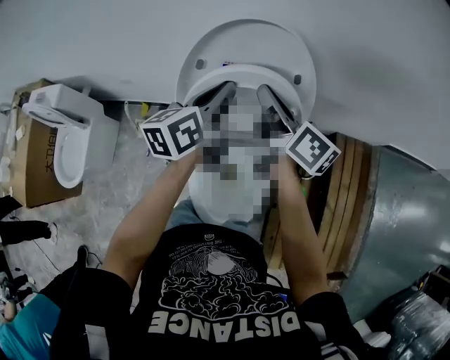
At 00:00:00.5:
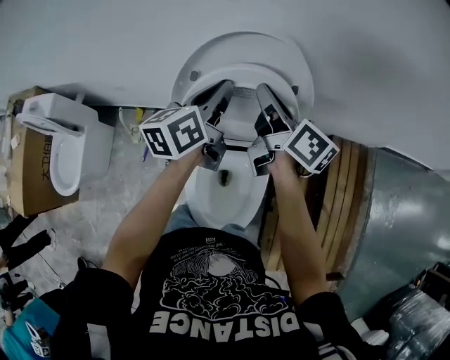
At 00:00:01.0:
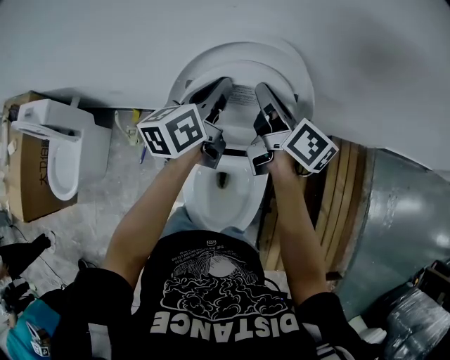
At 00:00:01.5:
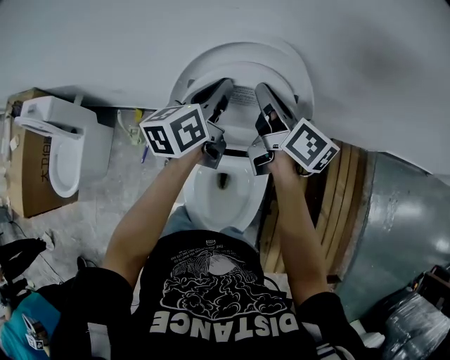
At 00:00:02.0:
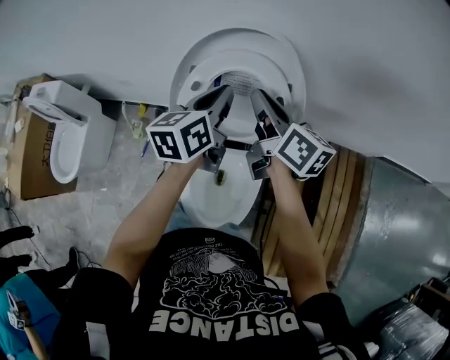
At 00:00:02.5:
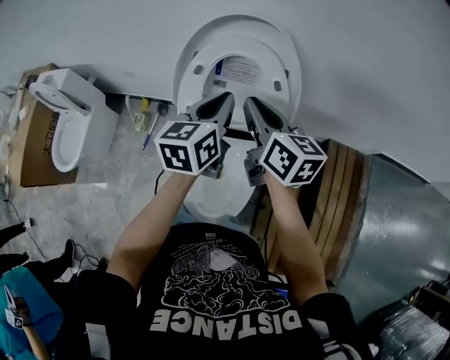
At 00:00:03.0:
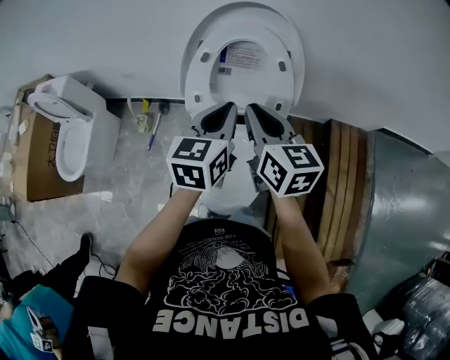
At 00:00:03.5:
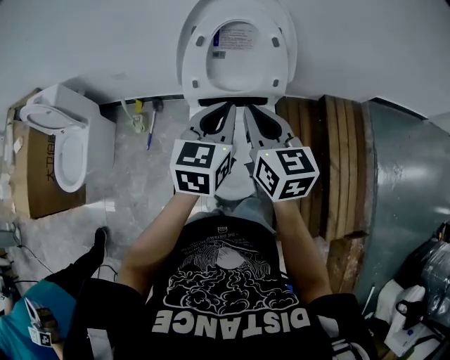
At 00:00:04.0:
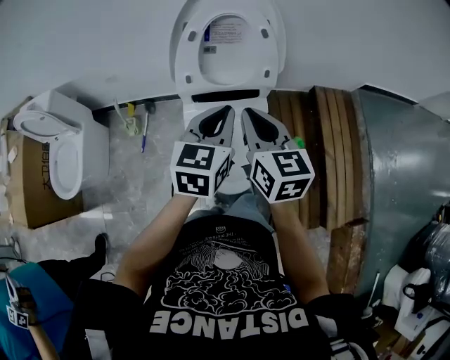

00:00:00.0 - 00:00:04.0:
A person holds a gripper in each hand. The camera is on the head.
00:00:00.0 - 00:00:02.0: The left gripper reaches about 10 cm forward, then returns; the right gripper moves approximately 10 cm forward and comes back.
00:00:02.0 - 00:00:04.0: The two grippers go some 25 cm backward. The left gripper turns by about 30 degrees. Meanwhile the right gripper turns by some 40 degrees.

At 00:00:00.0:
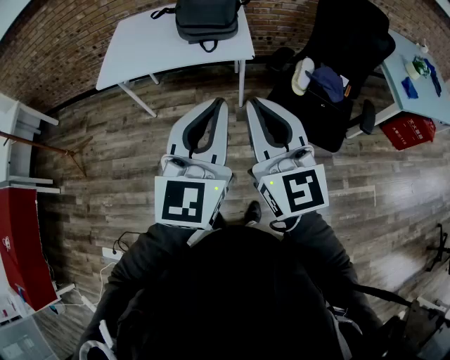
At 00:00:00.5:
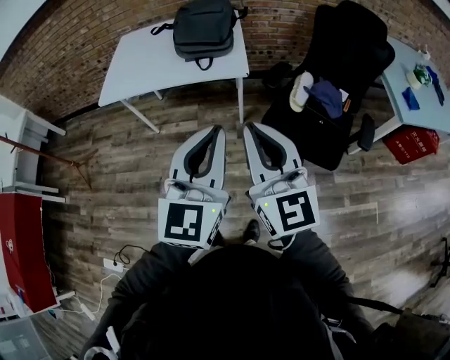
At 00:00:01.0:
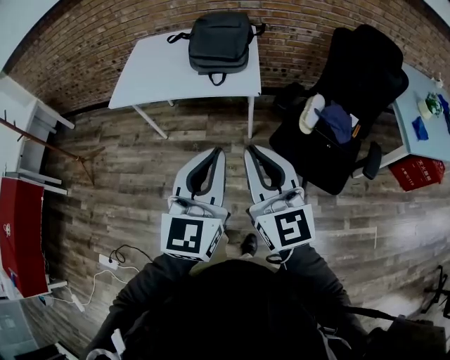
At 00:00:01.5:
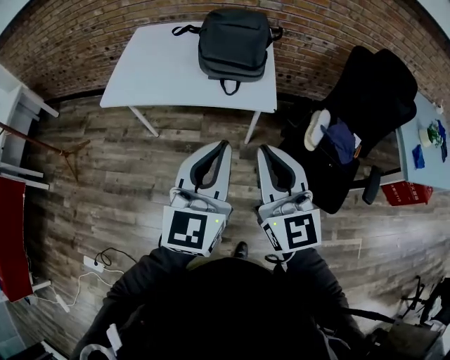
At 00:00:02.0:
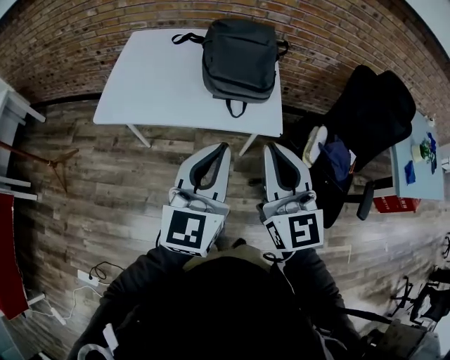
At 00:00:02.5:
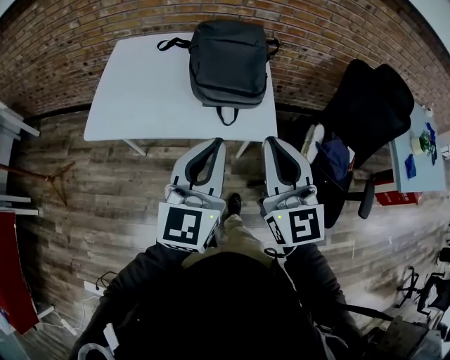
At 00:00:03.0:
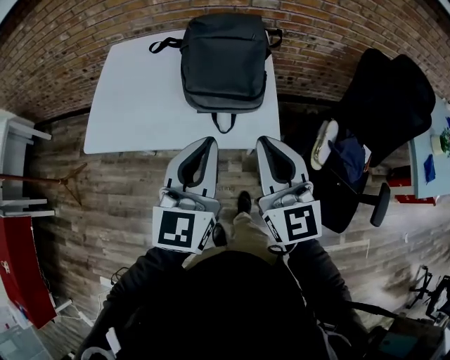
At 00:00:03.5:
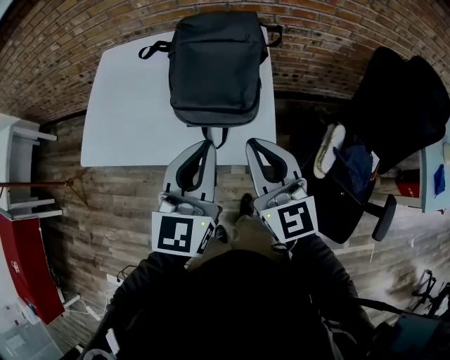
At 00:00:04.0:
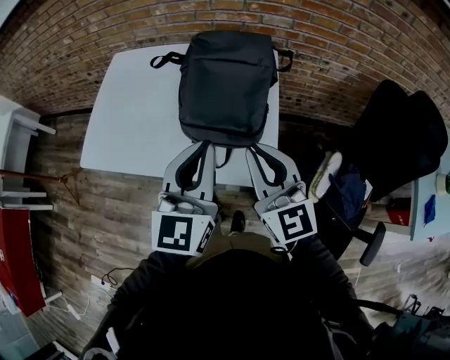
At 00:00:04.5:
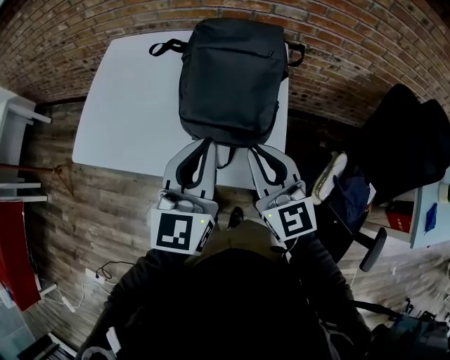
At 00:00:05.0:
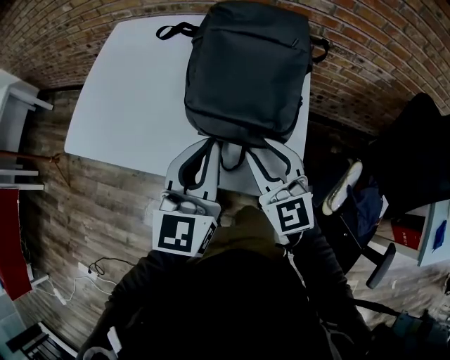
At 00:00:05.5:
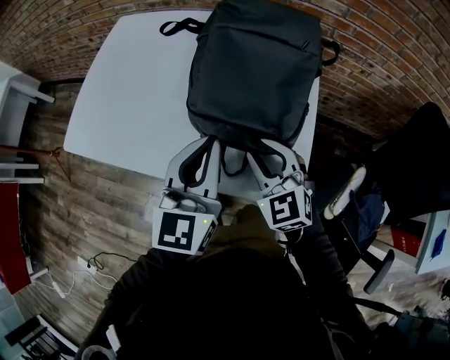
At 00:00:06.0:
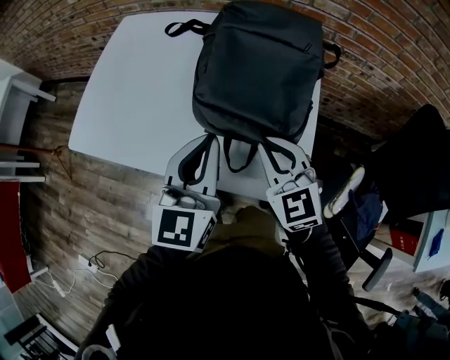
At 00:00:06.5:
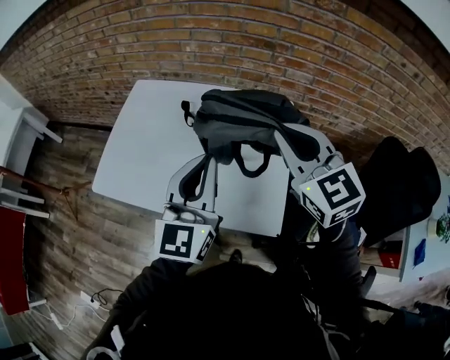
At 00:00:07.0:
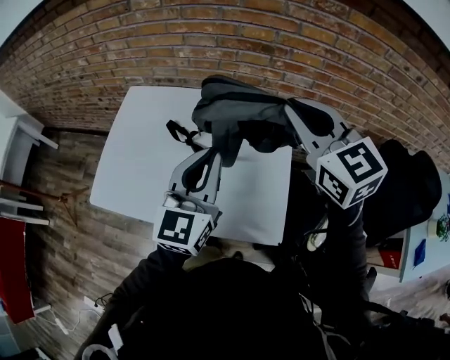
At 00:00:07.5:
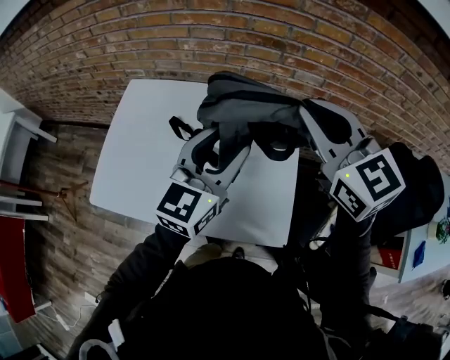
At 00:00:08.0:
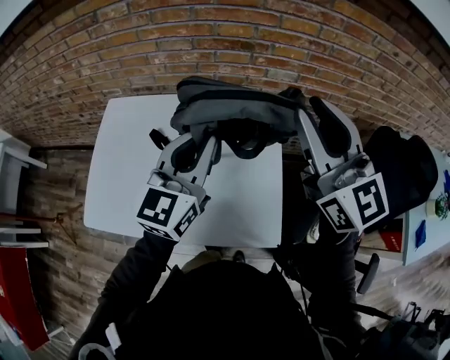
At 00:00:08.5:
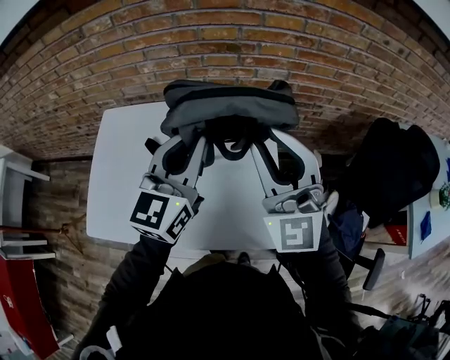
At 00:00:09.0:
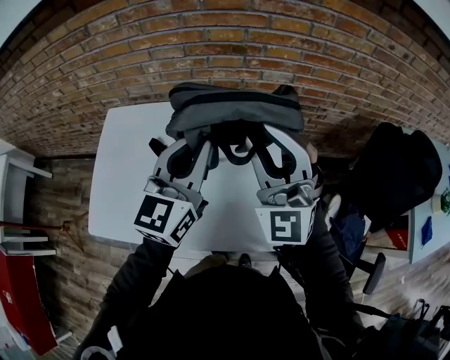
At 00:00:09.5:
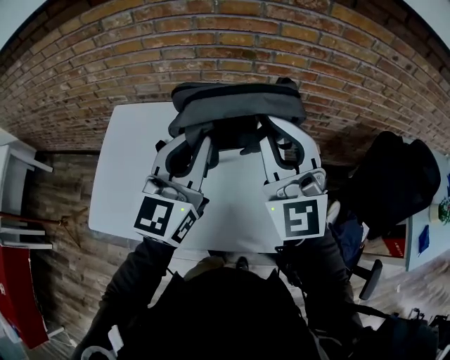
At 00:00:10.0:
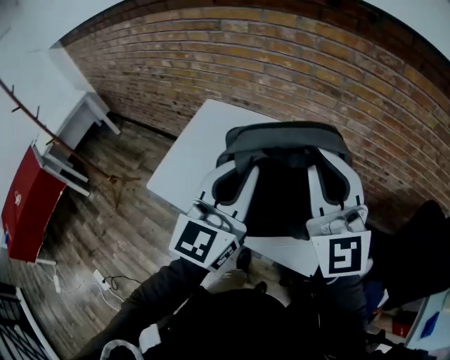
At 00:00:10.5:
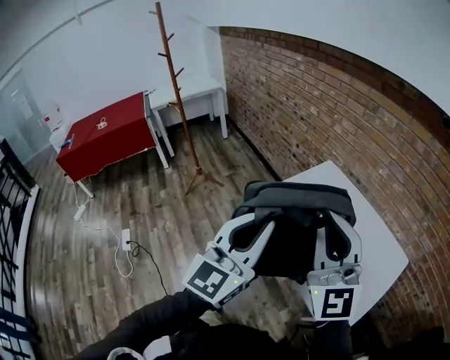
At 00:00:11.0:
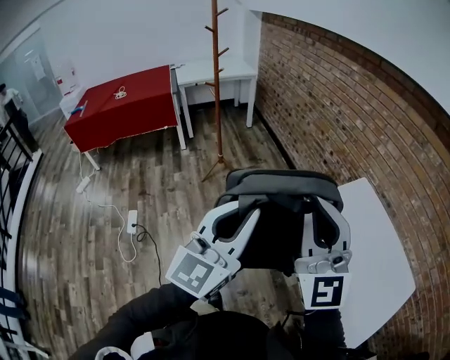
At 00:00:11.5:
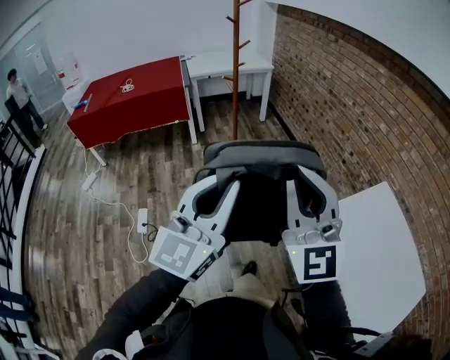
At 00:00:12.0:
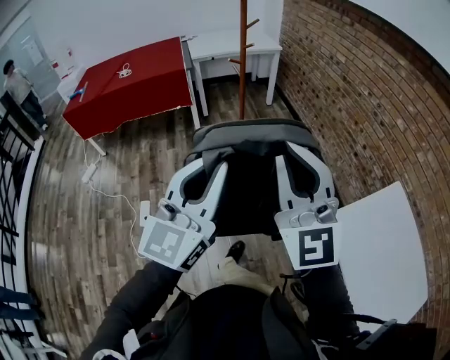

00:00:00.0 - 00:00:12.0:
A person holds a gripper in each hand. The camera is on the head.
00:00:00.0 - 00:00:02.0: Both grippers move forward, some 25 cm.
00:00:02.0 - 00:00:04.0: The grippers both shift forward by about 25 cm.
00:00:04.0 - 00:00:06.0: Both grippers move downward and forward, some 15 cm. The right gripper changes its angle by about 30 degrees, and opens, then closes once more.
00:00:06.0 - 00:00:08.0: The left gripper goes about 25 cm upward and forward, rotates about 20 degrees, and opens, then closes once more. The right gripper goes roughly 35 cm upward, and angles its fingers upward, by approximately 30 degrees.
00:00:08.0 - 00:00:10.0: The left gripper heads backward and upward, covering roughly 15 cm, and turns by approximately 20 degrees. The right gripper is displaced to the left and backward by about 10 cm.
00:00:10.0 - 00:00:12.0: The pair of grippers is taken roughly 80 cm. The left gripper swivels about 50 degrees, while the right gripper rotates some 50 degrees.

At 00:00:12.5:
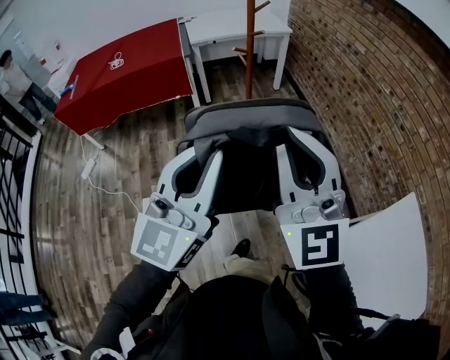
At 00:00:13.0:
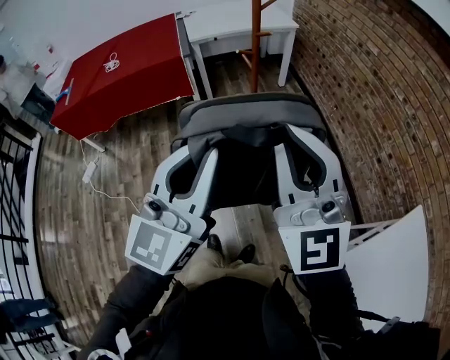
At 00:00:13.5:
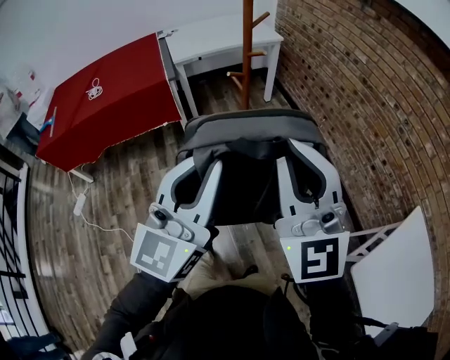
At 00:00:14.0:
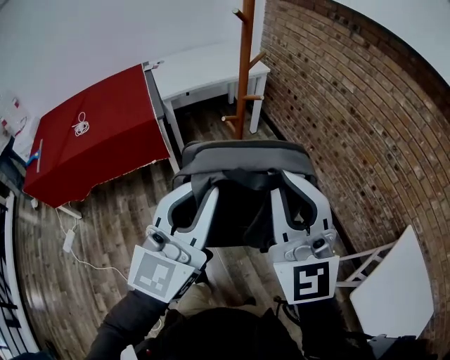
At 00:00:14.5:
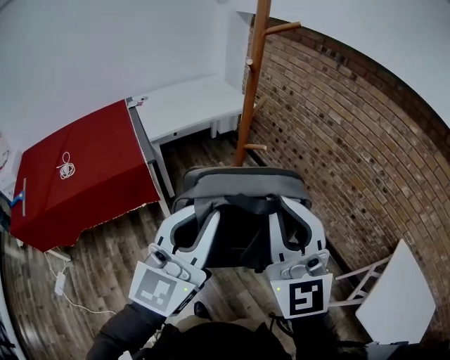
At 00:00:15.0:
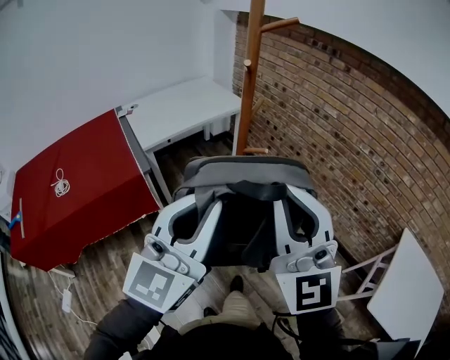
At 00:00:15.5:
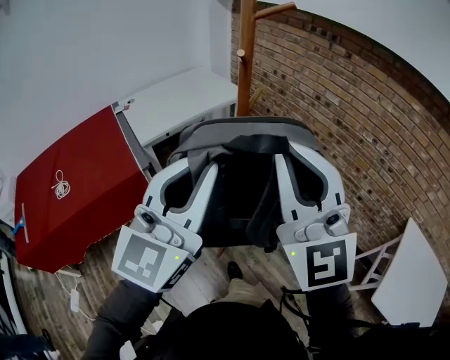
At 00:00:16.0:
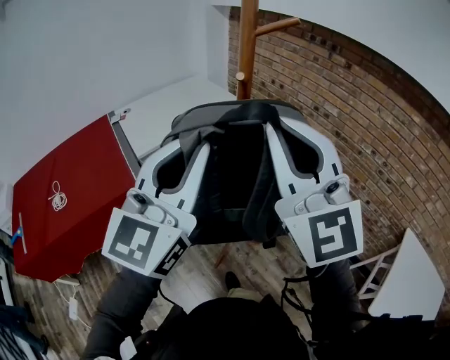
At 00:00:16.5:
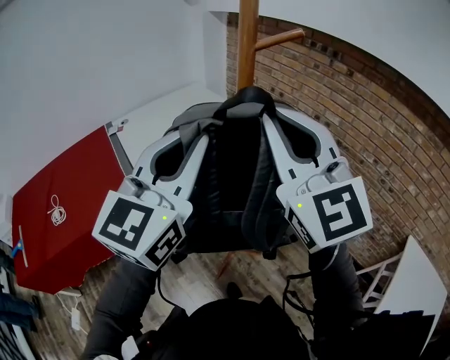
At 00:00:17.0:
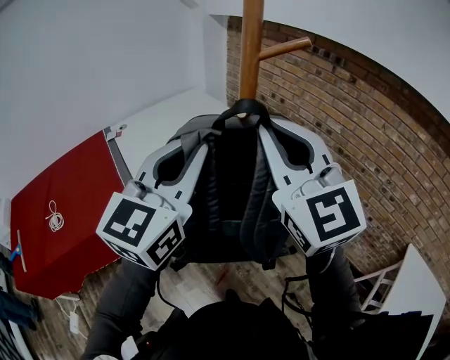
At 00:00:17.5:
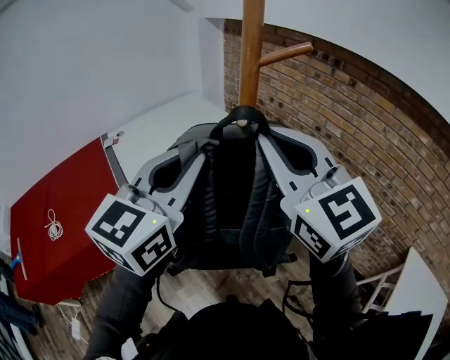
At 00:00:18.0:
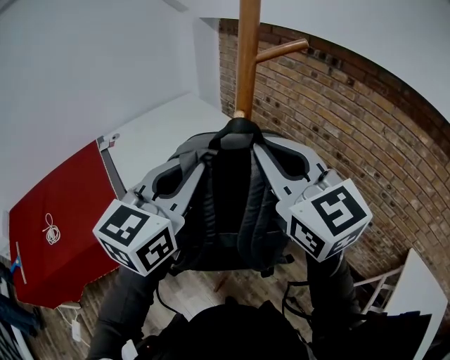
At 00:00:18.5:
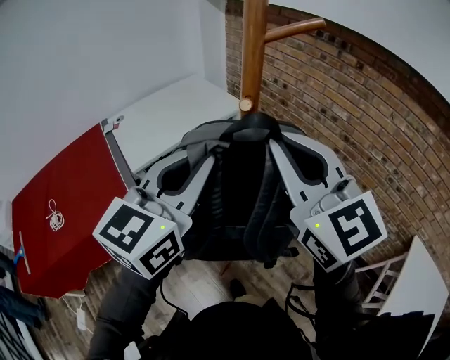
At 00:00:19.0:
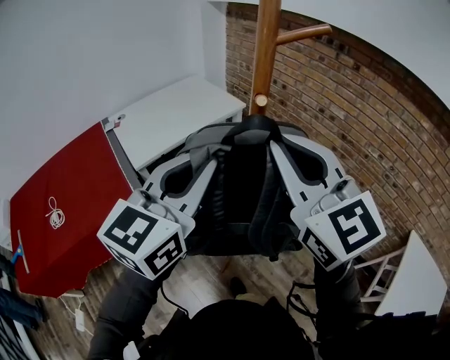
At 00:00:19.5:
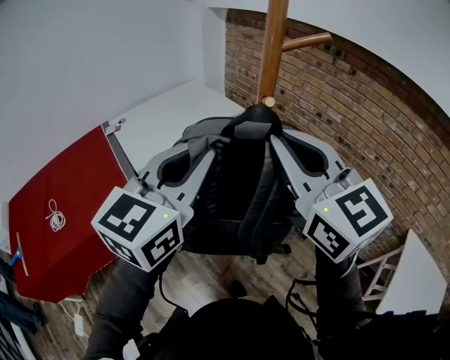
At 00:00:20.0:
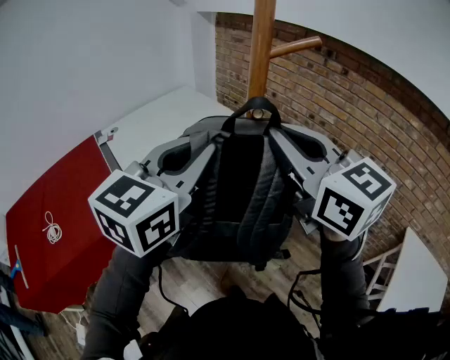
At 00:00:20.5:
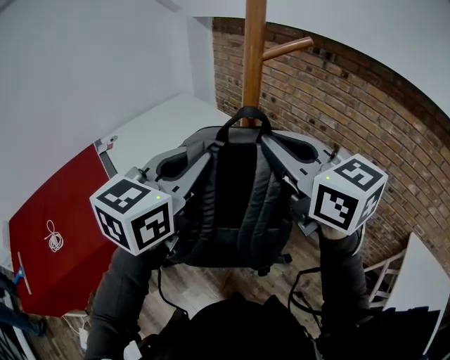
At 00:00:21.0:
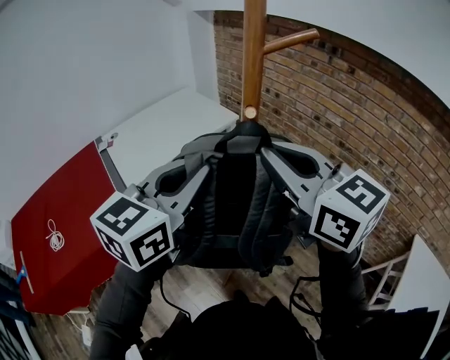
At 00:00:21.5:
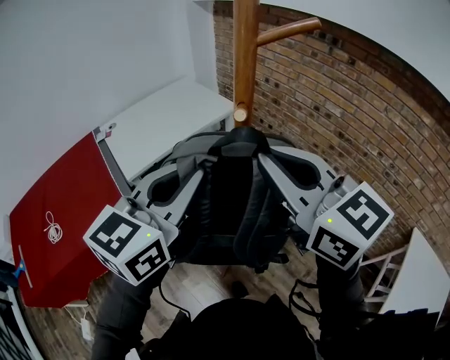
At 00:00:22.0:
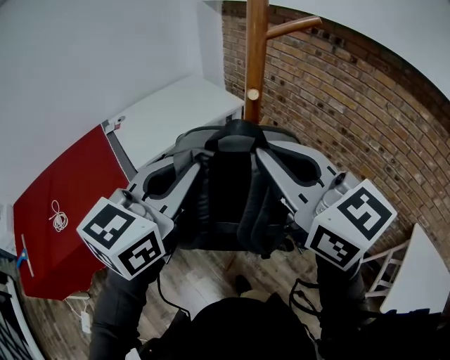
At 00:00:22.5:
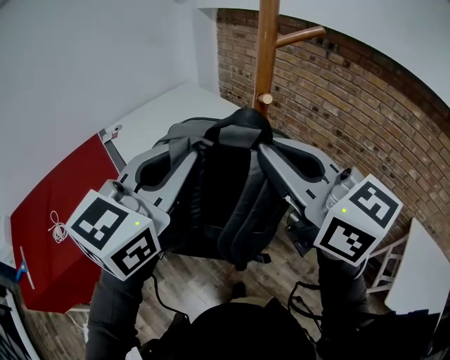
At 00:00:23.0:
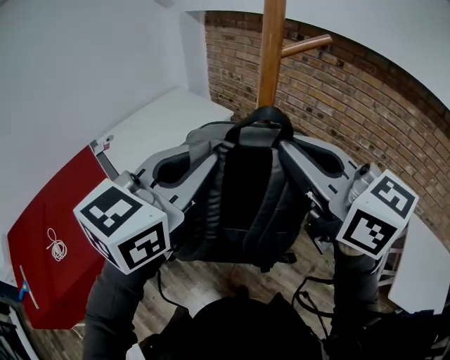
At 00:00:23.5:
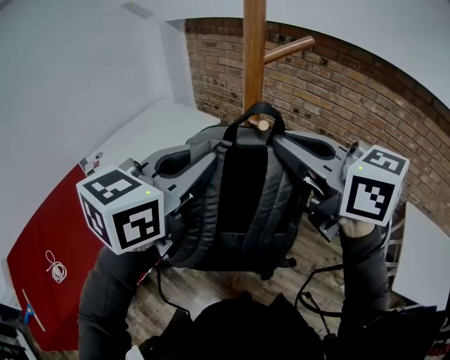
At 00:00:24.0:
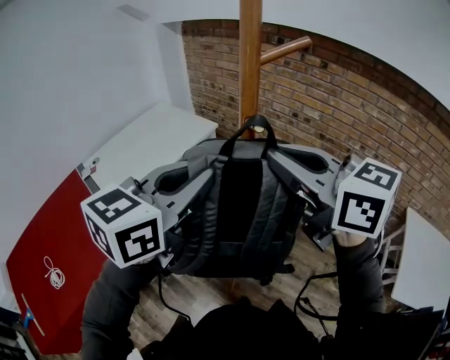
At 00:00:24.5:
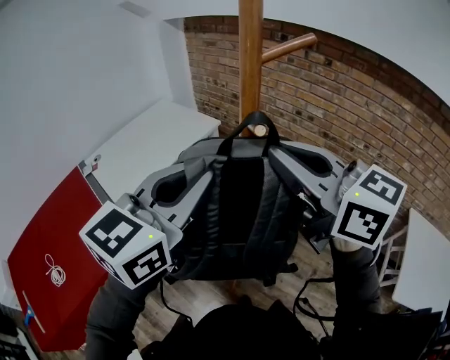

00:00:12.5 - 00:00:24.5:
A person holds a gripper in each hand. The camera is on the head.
00:00:12.5 - 00:00:14.5: The two grippers go roughly 35 cm forward and to the left.
00:00:14.5 - 00:00:16.5: The two grippers go some 25 cm forward and upward.
00:00:16.5 - 00:00:18.5: The left gripper shifts about 10 cm forward and downward. Meanwhile the right gripper is displaced downward by about 5 cm.
00:00:20.5 - 00:00:22.5: Both grippers move backward, about 10 cm.
00:00:22.5 - 00:00:24.5: Both grippers move forward, about 10 cm.
